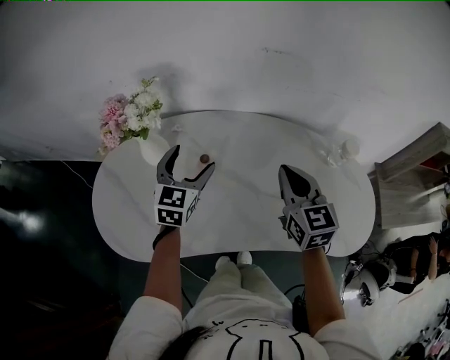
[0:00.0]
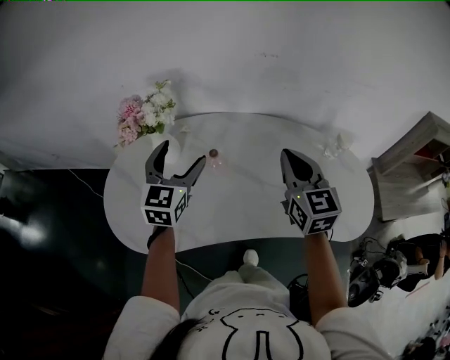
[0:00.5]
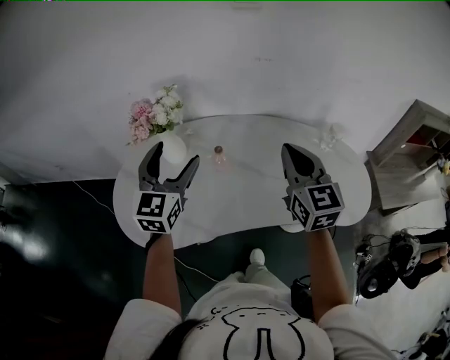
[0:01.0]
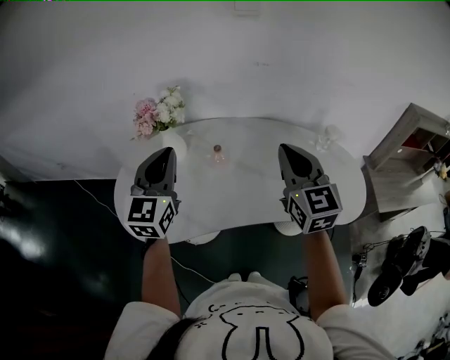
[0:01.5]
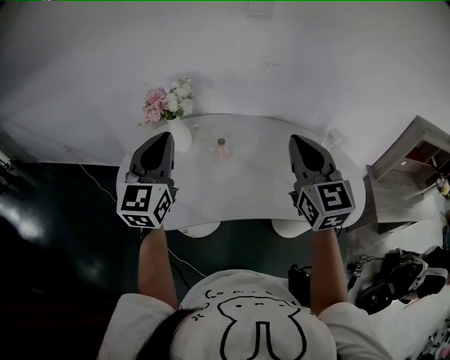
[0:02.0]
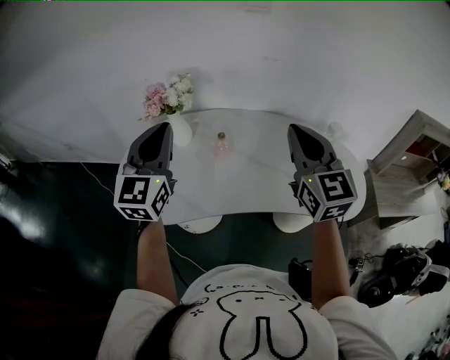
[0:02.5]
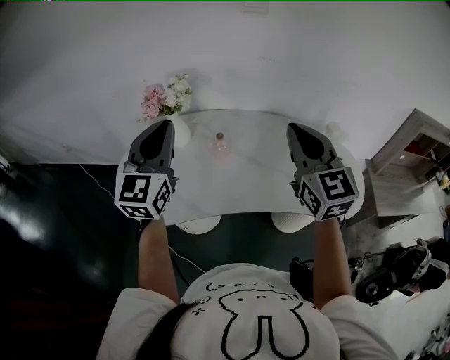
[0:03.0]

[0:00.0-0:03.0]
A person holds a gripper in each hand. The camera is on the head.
0:00.0 to 0:01.5: The right gripper travels upward and backward by roughly 20 cm; the left gripper travels upward, backward and to the left by approximately 25 cm, and closes up.
0:01.5 to 0:03.0: Both grippers move upward, some 5 cm.

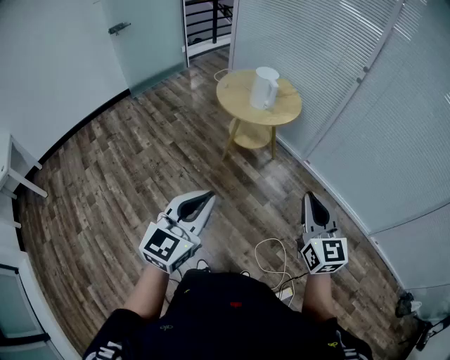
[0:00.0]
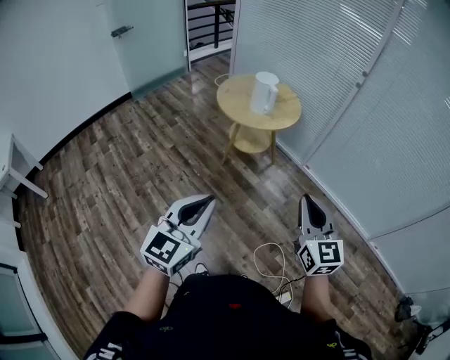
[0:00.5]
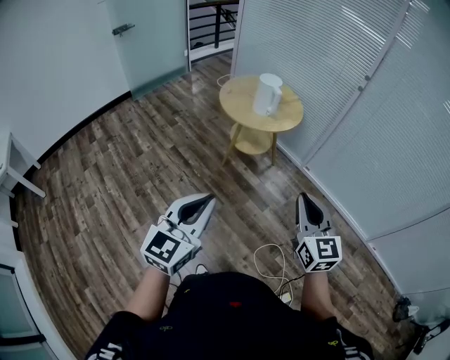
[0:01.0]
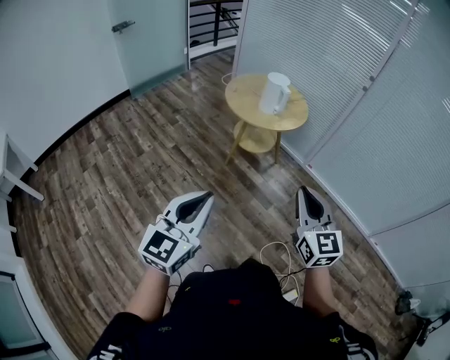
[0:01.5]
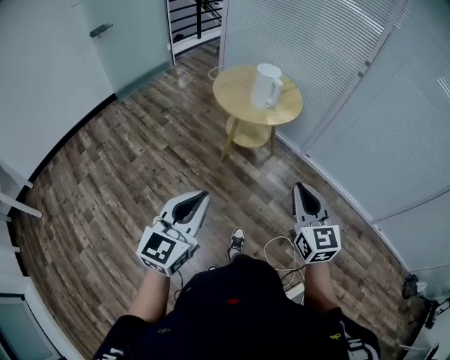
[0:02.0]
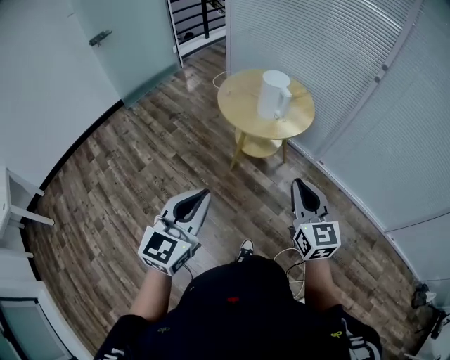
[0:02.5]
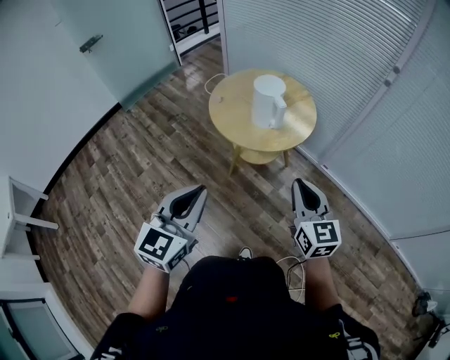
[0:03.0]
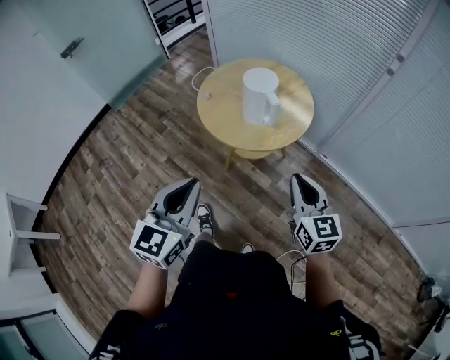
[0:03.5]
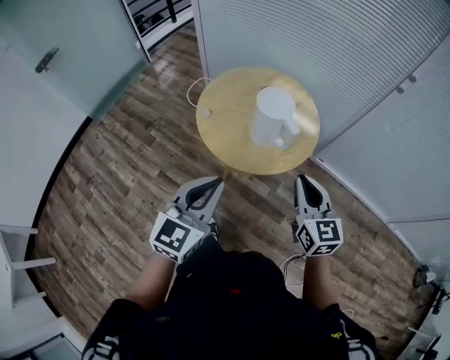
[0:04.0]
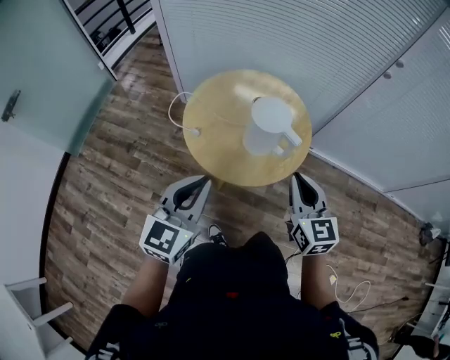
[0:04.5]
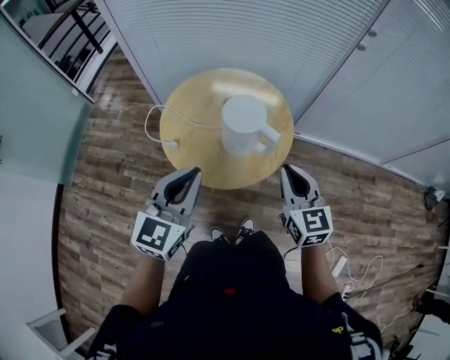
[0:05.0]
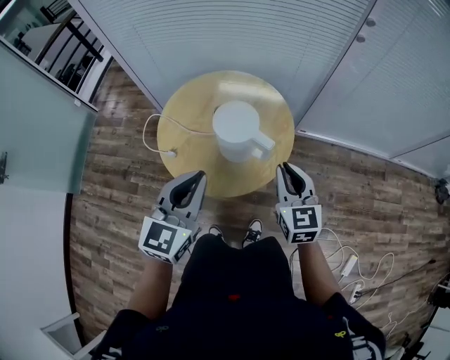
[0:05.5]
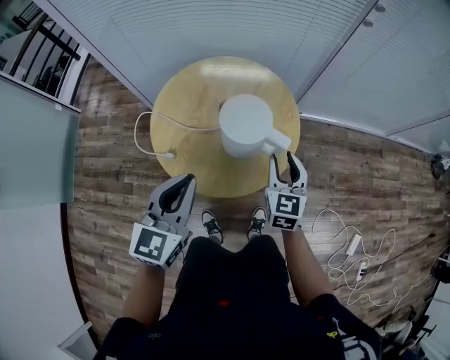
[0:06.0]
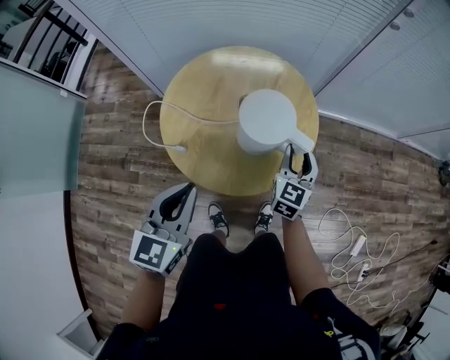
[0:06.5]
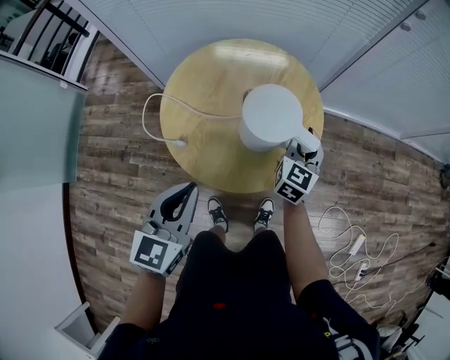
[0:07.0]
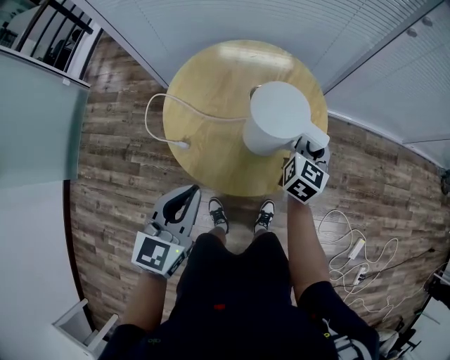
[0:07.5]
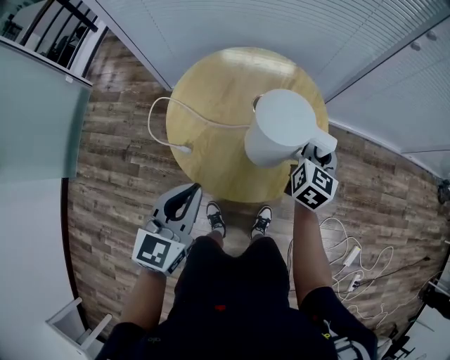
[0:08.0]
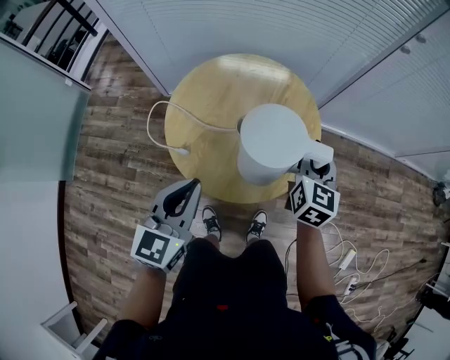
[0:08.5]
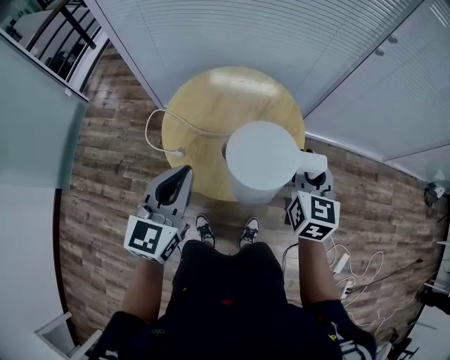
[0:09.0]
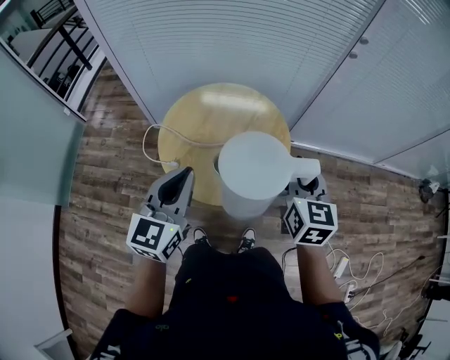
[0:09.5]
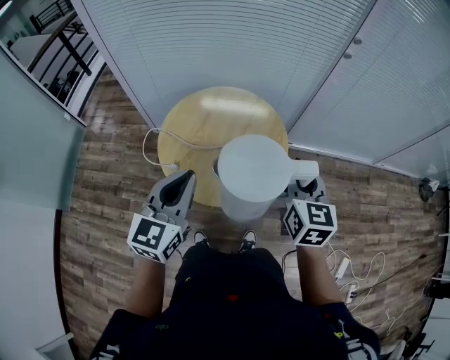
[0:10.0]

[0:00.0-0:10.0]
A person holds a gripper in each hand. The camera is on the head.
0:00.0 to 0:02.0: The grippers both shift to the left and forward by about 15 cm.
0:02.0 to 0:04.0: The pair of grippers is taken forward, some 50 cm.
0:04.0 to 0:06.0: The left gripper changes place by roughly 25 cm, and changes its angle by about 20 degrees. Meanwhile the right gripper changes place by approximately 25 cm, swivels about 40 degrees, and opens.
0:06.0 to 0:08.0: The right gripper is displaced forward by about 10 cm. Meanwhile the left gripper shifts about 5 cm downward.
0:08.0 to 0:10.0: The right gripper shifts approximately 25 cm upward and backward. Meanwhile the left gripper heads upward and to the right, covering approximately 15 cm.

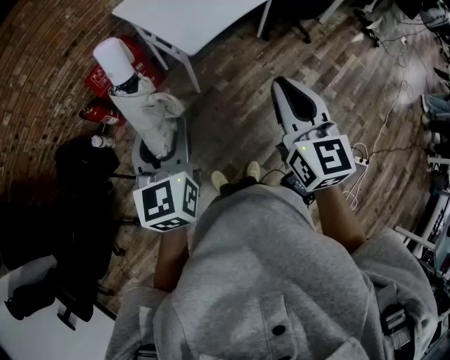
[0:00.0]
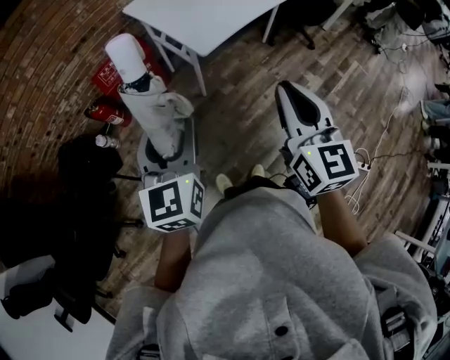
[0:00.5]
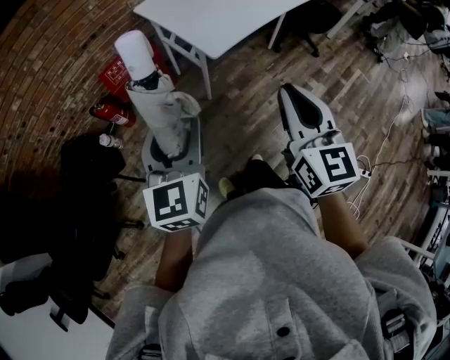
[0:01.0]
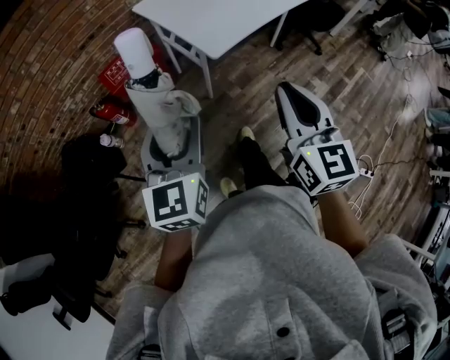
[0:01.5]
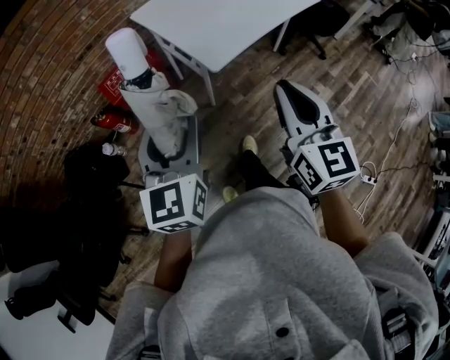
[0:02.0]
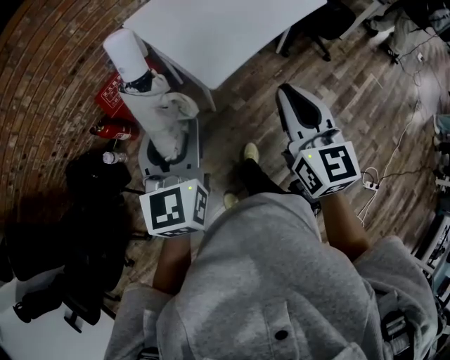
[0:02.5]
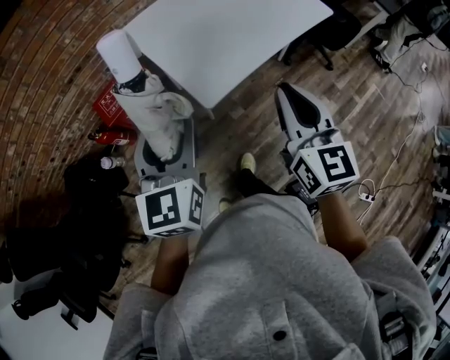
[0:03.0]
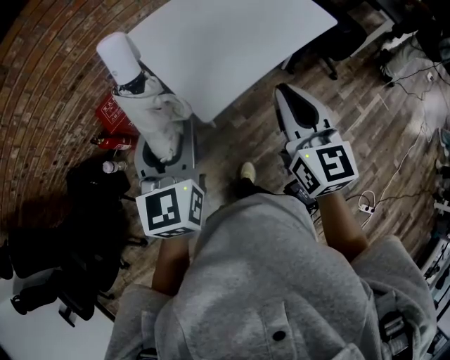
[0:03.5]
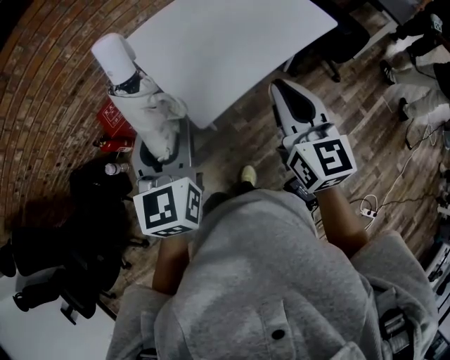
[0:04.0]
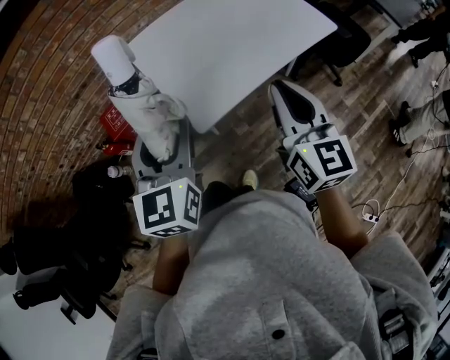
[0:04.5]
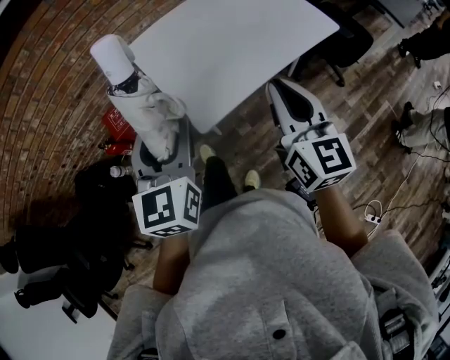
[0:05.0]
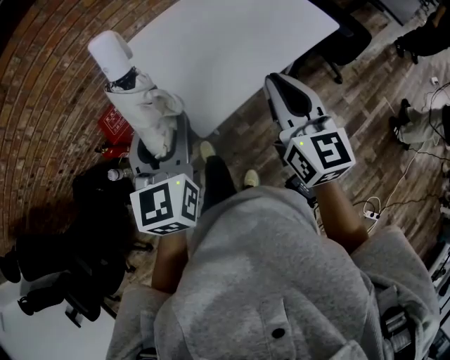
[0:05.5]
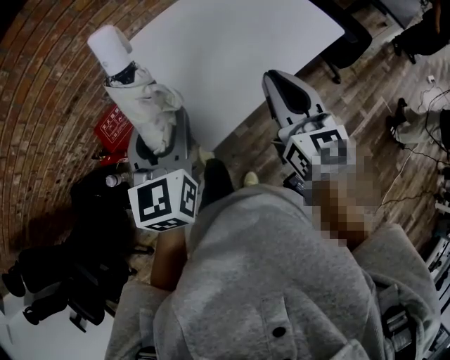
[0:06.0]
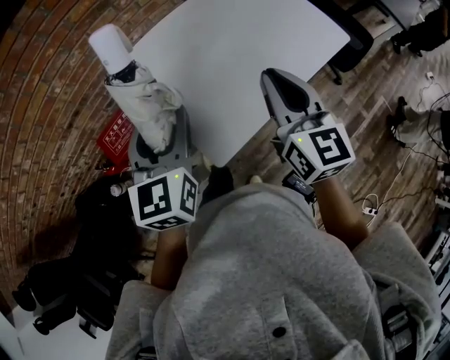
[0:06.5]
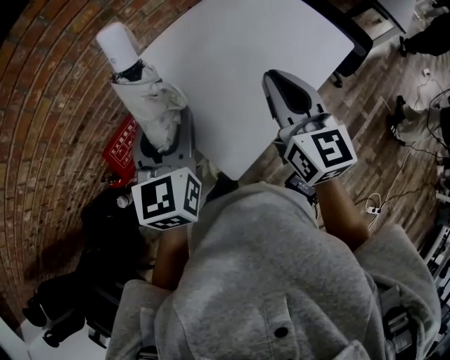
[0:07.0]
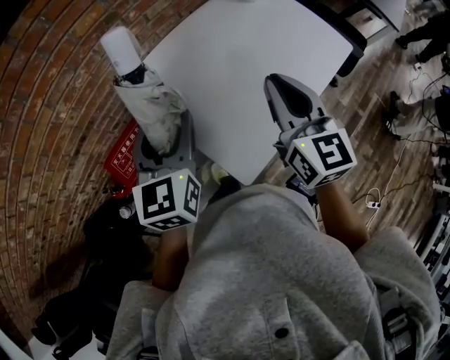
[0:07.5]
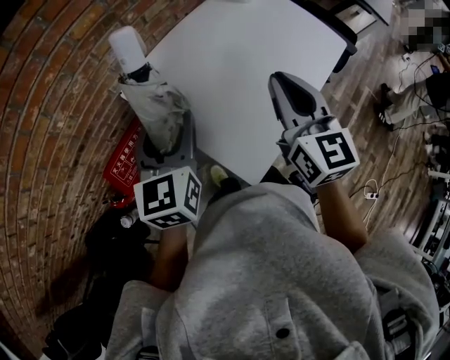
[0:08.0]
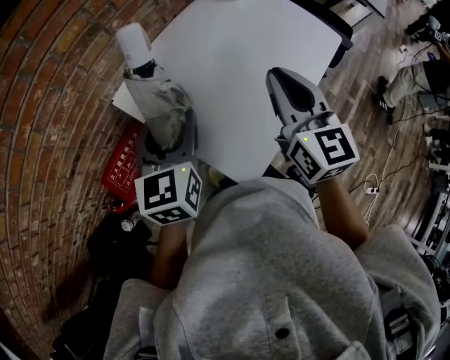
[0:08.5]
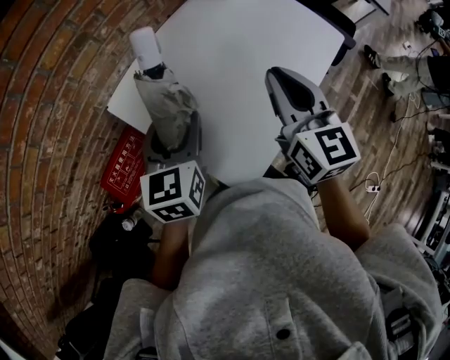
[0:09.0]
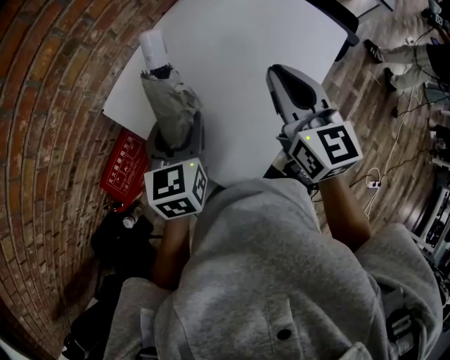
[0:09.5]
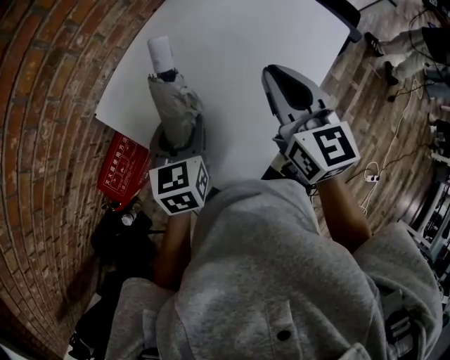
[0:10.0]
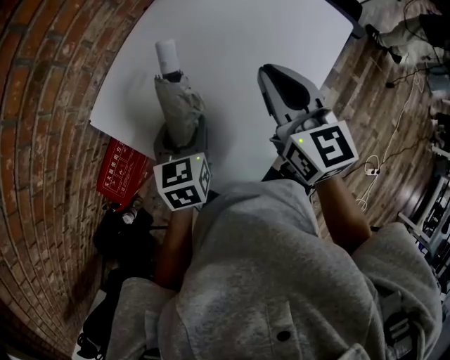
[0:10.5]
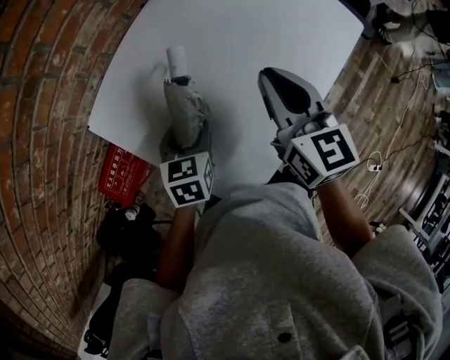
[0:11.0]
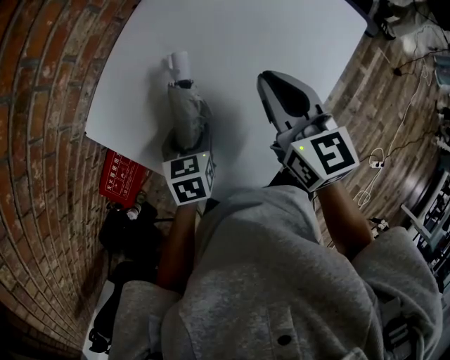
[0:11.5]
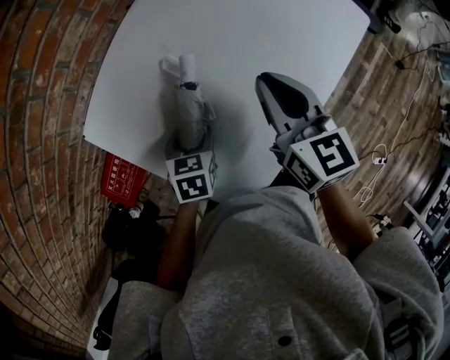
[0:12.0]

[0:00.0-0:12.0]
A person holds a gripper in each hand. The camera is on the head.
0:00.0 to 0:02.0: The right gripper shifts approximately 10 cm forward and to the left. The left gripper goes roughly 5 cm forward.
0:02.0 to 0:04.0: Both grippers move forward and to the right, some 25 cm.
0:04.0 to 0:06.0: The two grippers go some 10 cm forward.
0:06.0 to 0:08.0: Both grippers move forward and to the left, about 20 cm.
0:08.0 to 0:10.0: The right gripper shifts roughly 15 cm forward, to the right and downward. The left gripper is displaced downward, to the right and forward by approximately 20 cm, and swivels roughly 20 degrees.
0:10.0 to 0:12.0: The right gripper travels downward and forward by about 10 cm. The left gripper is displaced downward by about 15 cm, and swivels roughly 30 degrees.

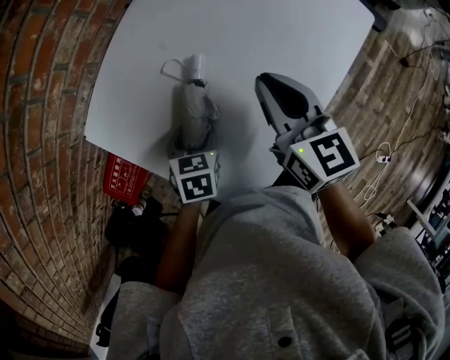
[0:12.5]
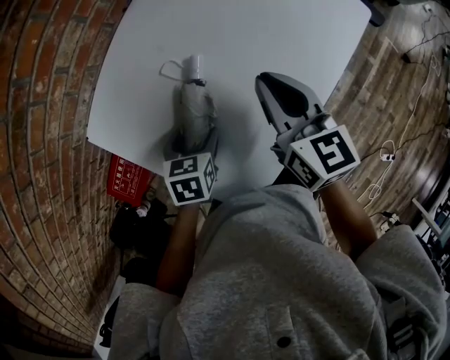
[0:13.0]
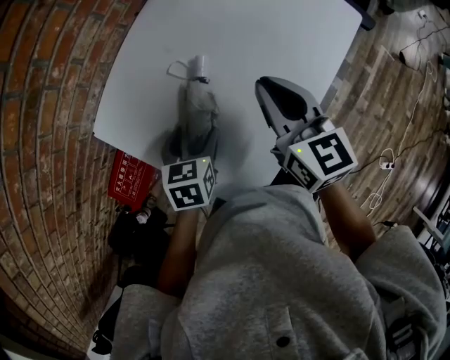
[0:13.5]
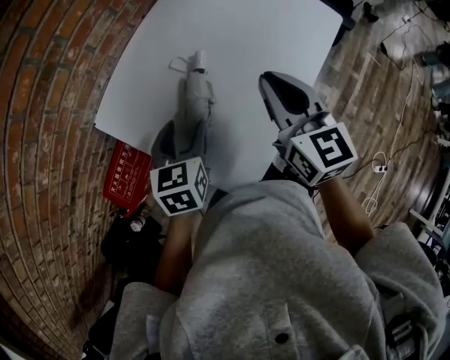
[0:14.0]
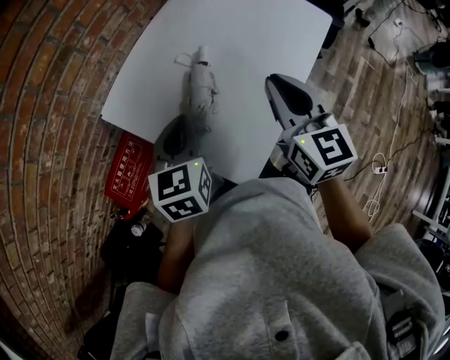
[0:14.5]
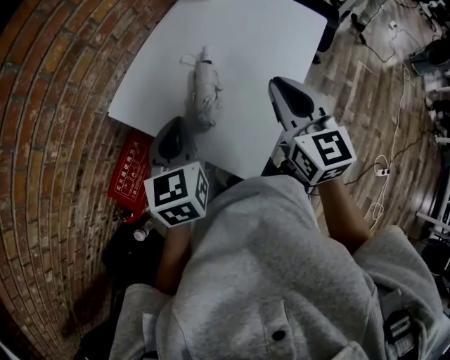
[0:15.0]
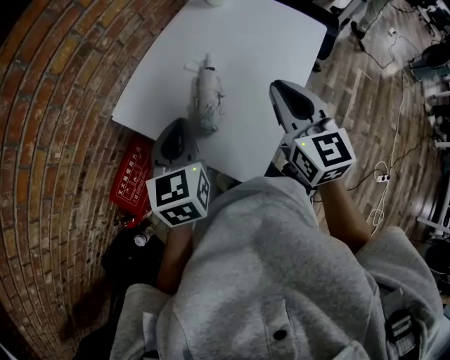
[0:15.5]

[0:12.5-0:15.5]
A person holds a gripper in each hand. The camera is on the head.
0:12.5 to 0:14.0: The left gripper is displaced upward by roughly 15 cm, and swivels roughly 20 degrees, while the right gripper shifts roughly 10 cm upward and backward.
0:14.0 to 0:15.5: The left gripper goes about 15 cm upward, backward and to the left, and closes its fingers. The right gripper travels backward by about 10 cm.
